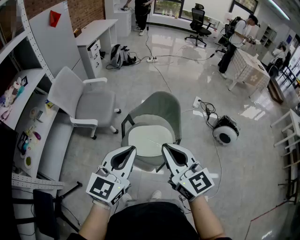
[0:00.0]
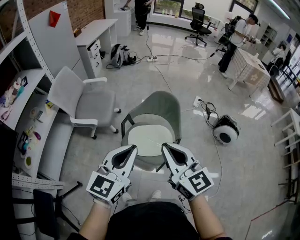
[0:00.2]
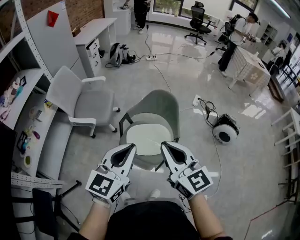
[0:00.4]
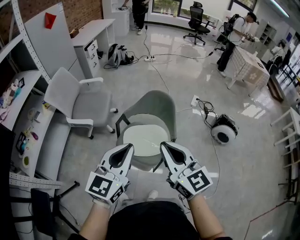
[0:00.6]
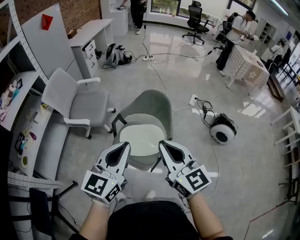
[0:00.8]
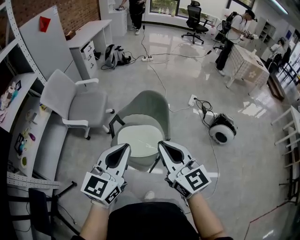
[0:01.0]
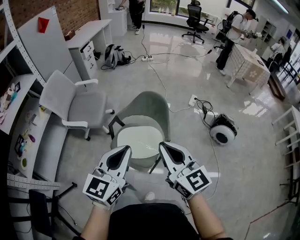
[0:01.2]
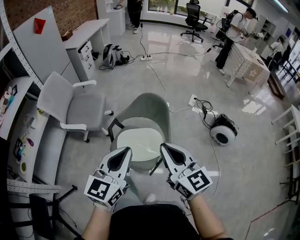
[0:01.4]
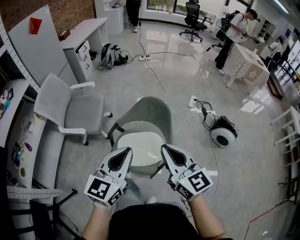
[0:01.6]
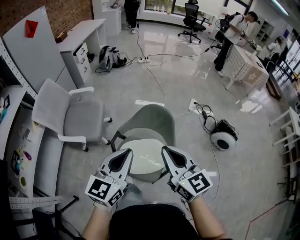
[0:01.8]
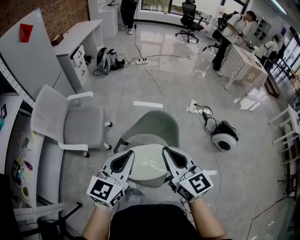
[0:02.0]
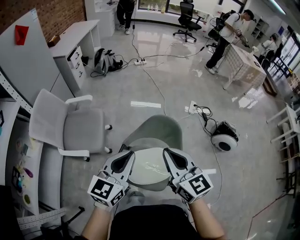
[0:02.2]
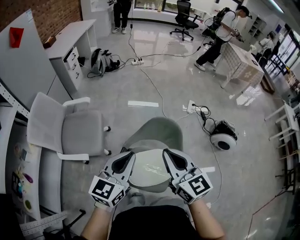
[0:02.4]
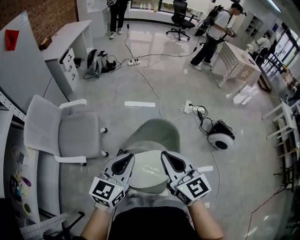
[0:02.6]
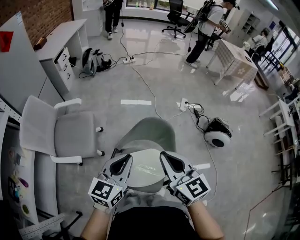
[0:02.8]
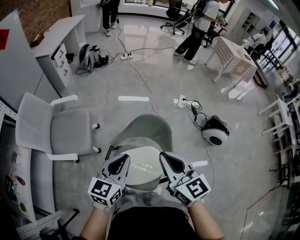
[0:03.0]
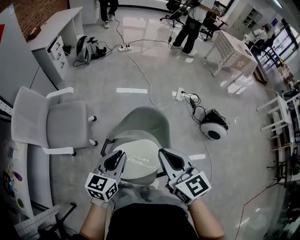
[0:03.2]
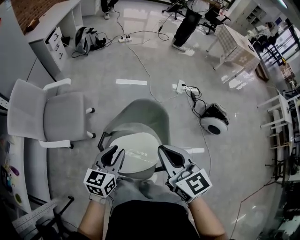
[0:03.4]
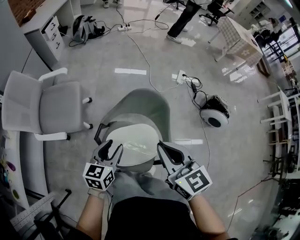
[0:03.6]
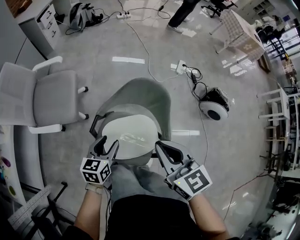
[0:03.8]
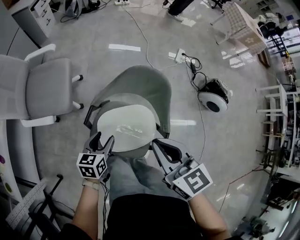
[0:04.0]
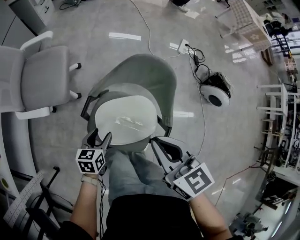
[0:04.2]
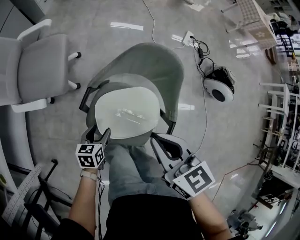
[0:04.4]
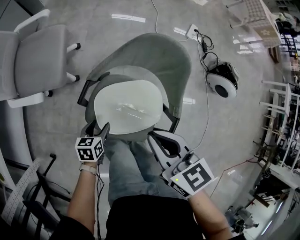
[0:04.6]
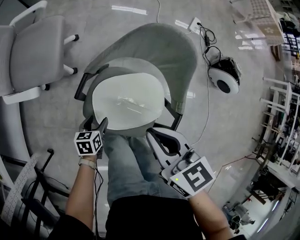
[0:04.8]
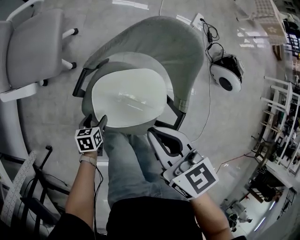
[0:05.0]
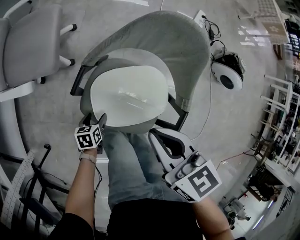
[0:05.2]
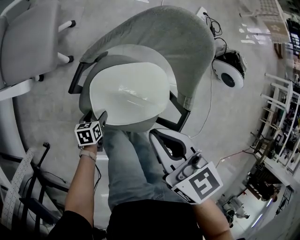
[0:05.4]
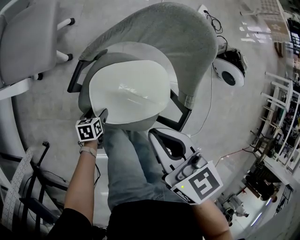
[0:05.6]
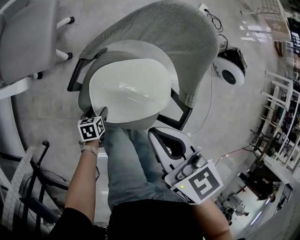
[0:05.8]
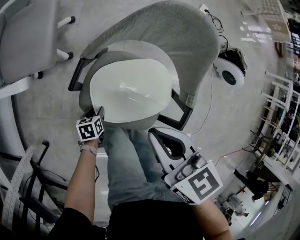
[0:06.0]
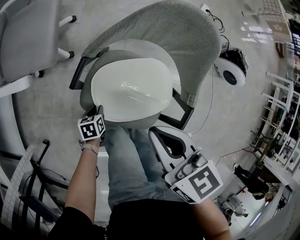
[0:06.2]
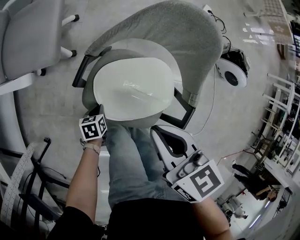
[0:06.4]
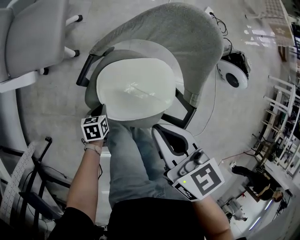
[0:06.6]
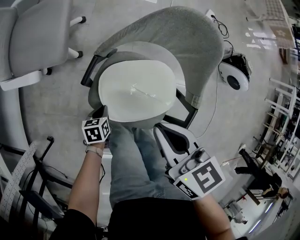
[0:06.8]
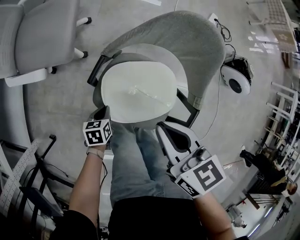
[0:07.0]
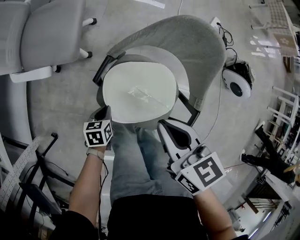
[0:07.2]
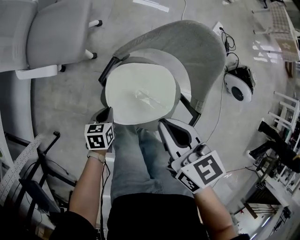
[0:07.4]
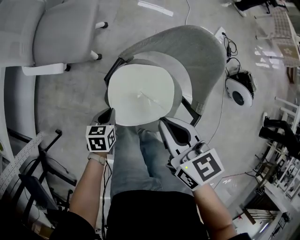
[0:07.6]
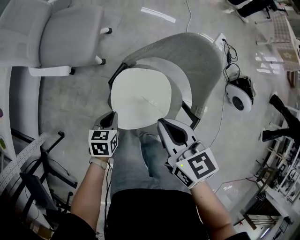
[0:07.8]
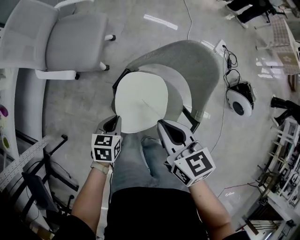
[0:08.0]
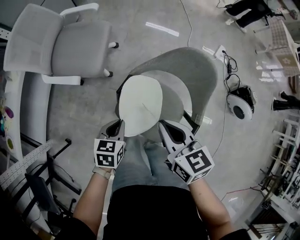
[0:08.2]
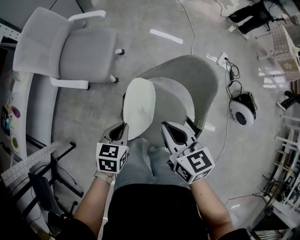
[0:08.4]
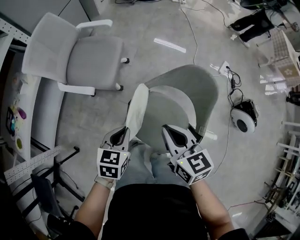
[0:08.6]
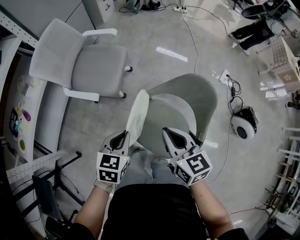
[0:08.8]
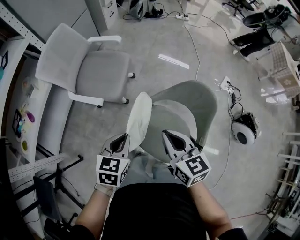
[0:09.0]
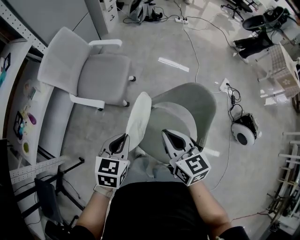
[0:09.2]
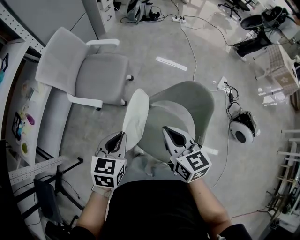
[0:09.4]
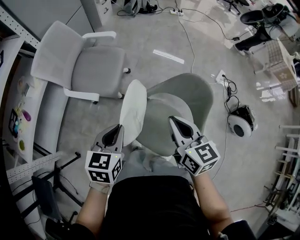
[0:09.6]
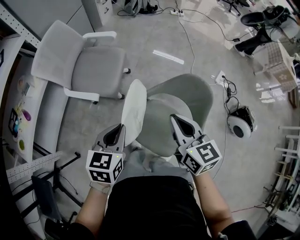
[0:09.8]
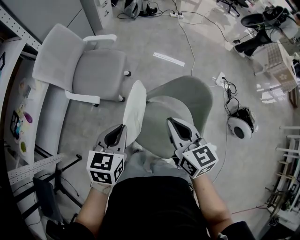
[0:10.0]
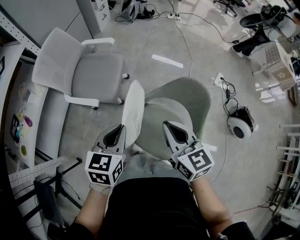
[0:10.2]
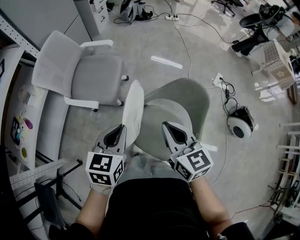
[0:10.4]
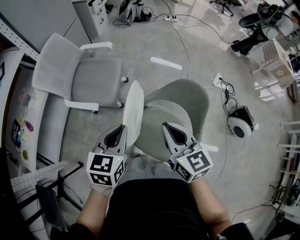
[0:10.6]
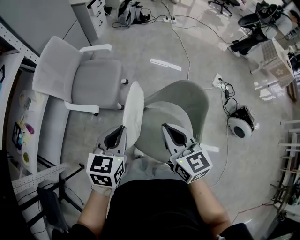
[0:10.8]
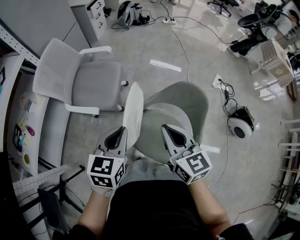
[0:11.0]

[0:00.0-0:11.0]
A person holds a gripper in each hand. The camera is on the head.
0:00.0 to 0:01.6: Both grippers travel together forward and to the right, about 10 cm.
0:01.6 to 0:03.2: The right gripper shifts about 15 cm forward. Meanwhile the left gripper travels forward and downward by approximately 20 cm.
0:03.2 to 0:04.8: The right gripper is displaced downward by approximately 20 cm, and changes its angle by approximately 30 degrees. The left gripper heads downward, covering approximately 40 cm, points its fingers roughly 40 degrees further downward, and opens its fingers.
0:04.8 to 0:06.2: The left gripper heads downward, covering about 10 cm, and closes up.
0:06.2 to 0:07.8: The right gripper changes place by approximately 5 cm; the left gripper is displaced upward by approximately 20 cm.
0:07.8 to 0:09.4: The left gripper is displaced upward by some 25 cm, and swivels roughly 20 degrees. Meanwhile the right gripper moves upward, roughly 10 cm.
0:09.4 to 0:11.0: The left gripper ends up roughly 5 cm from where it was.

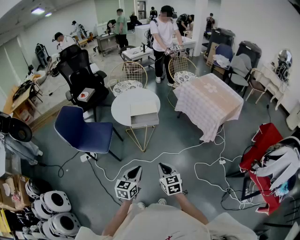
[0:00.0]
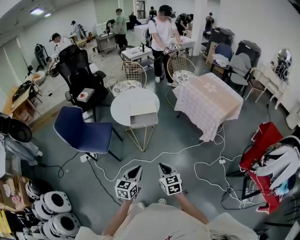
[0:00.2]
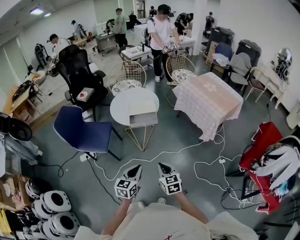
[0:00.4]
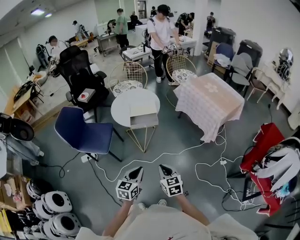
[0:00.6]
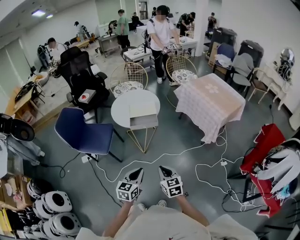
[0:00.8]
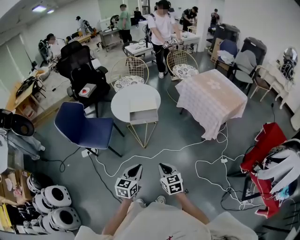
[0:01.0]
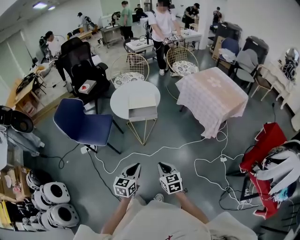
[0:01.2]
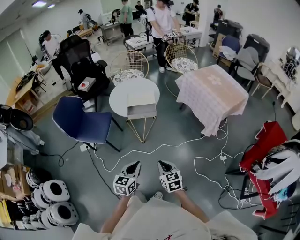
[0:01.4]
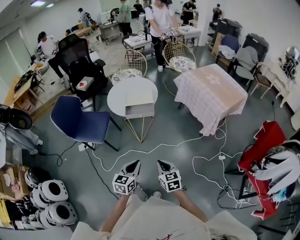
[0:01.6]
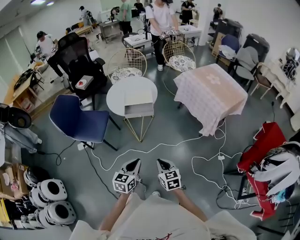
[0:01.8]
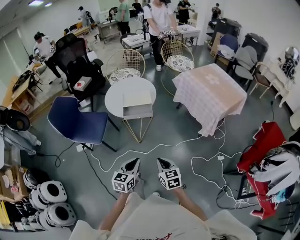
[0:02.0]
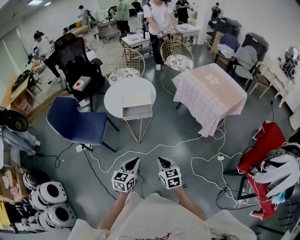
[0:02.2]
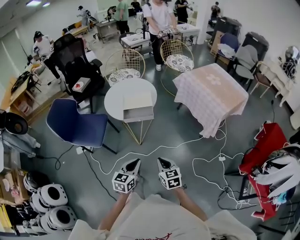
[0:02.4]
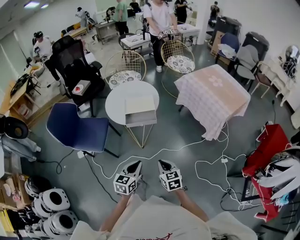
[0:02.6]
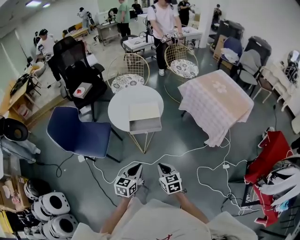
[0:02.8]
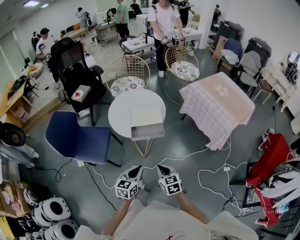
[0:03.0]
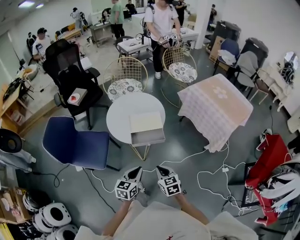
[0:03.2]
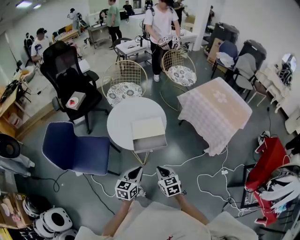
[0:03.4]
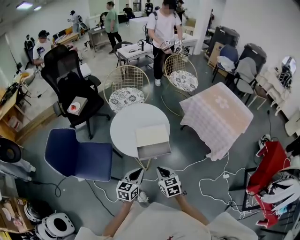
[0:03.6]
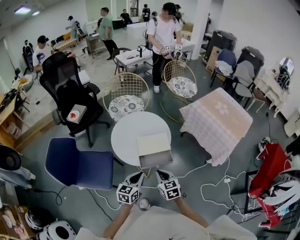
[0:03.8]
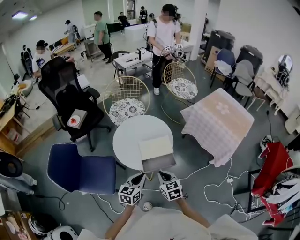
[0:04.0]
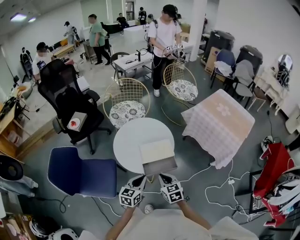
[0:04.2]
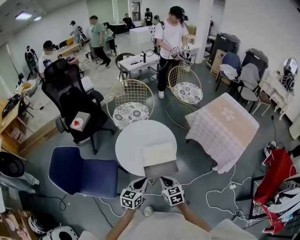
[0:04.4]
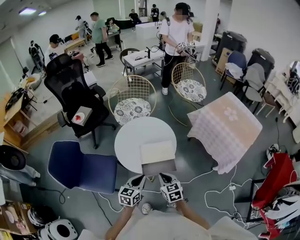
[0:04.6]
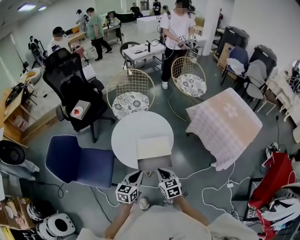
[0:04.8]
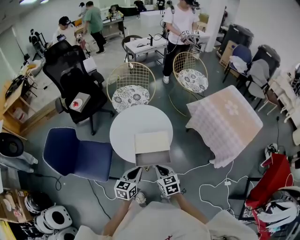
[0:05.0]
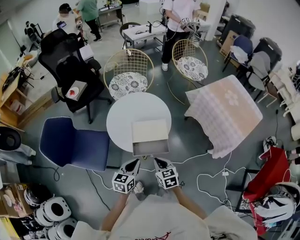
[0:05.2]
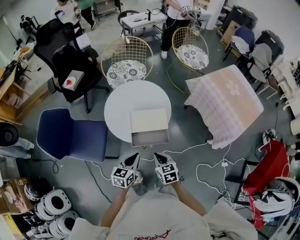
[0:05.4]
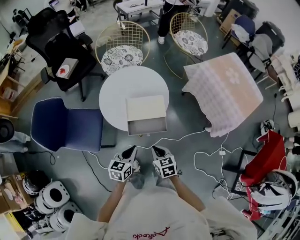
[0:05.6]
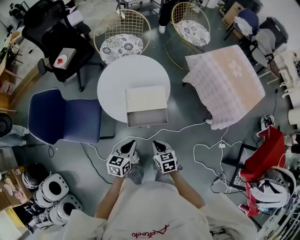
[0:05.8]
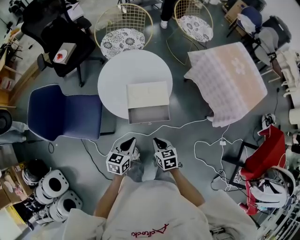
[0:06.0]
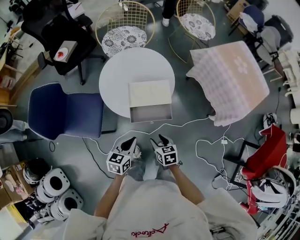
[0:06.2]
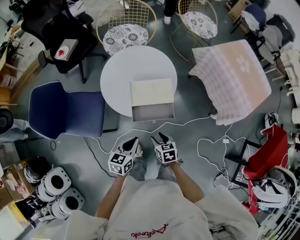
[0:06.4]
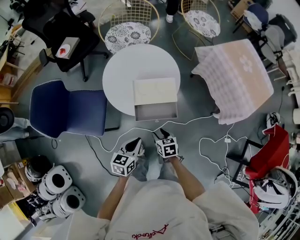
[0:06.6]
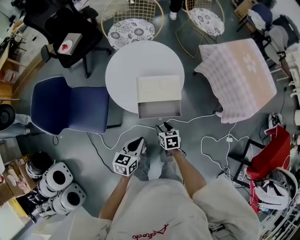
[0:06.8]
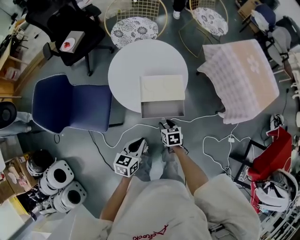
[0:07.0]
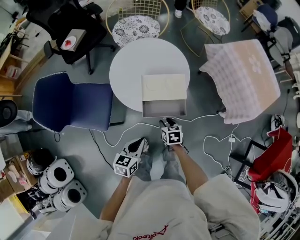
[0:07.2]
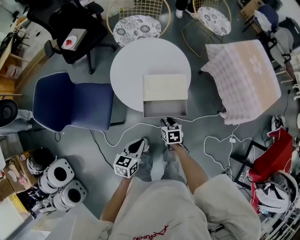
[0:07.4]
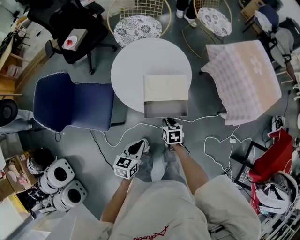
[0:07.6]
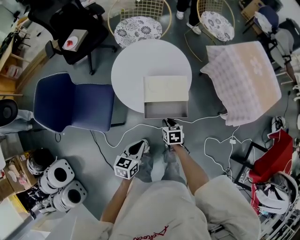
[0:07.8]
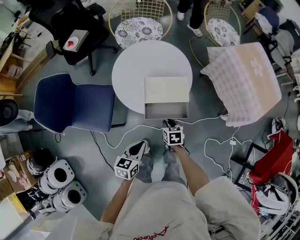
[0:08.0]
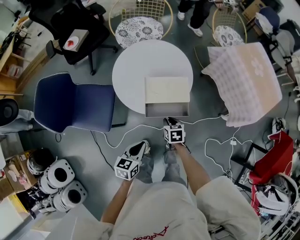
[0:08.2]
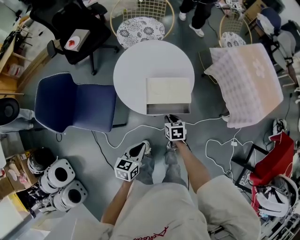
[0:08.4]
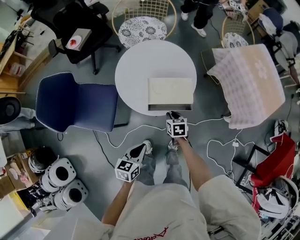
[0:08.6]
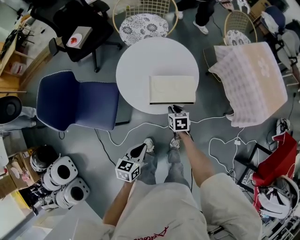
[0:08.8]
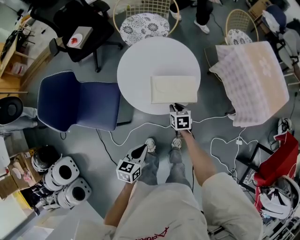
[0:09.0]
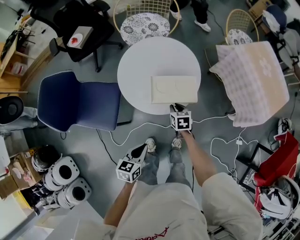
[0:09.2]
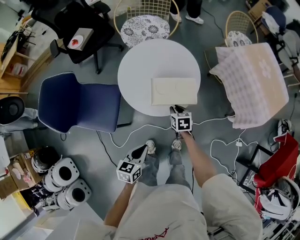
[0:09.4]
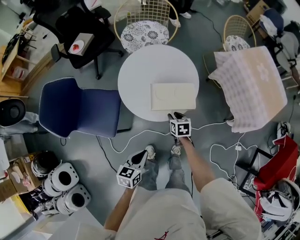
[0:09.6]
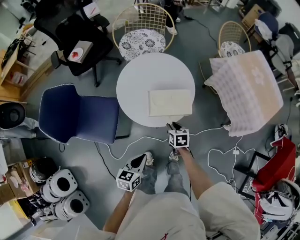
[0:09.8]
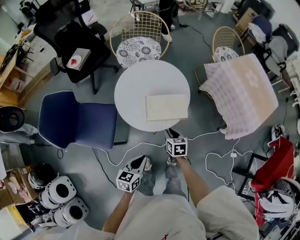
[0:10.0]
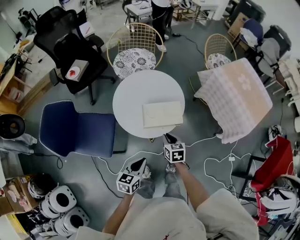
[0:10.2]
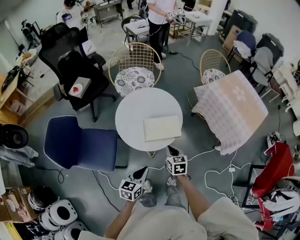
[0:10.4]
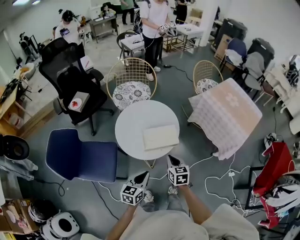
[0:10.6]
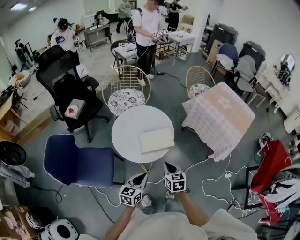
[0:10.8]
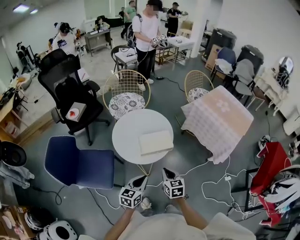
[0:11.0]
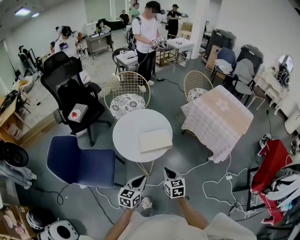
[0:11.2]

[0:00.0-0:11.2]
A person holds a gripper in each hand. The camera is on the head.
0:00.0 to 0:01.6: The left gripper is displaced to the right by some 5 cm; the right gripper changes place by some 5 cm.
0:01.6 to 0:03.2: The left gripper is displaced forward by roughly 20 cm; the right gripper shifts about 20 cm forward and to the left.
0:03.2 to 0:04.8: Both grippers move forward, approximately 15 cm.
0:04.8 to 0:06.4: The right gripper is displaced downward and backward by some 15 cm, rotates approximately 20 degrees, and opens its fingers, while the left gripper heads downward and backward, covering roughly 10 cm.
0:06.4 to 0:08.0: The right gripper is displaced forward by roughly 5 cm, and closes its fingers.
0:08.0 to 0:09.6: The right gripper shifts some 10 cm forward.
0:09.6 to 0:11.2: The left gripper travels upward by about 10 cm, and turns by roughly 20 degrees; the right gripper shifts about 25 cm upward and backward, turns by about 30 degrees, and closes up.

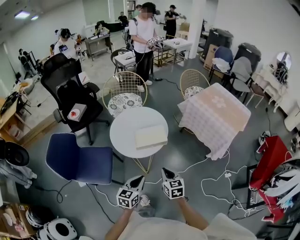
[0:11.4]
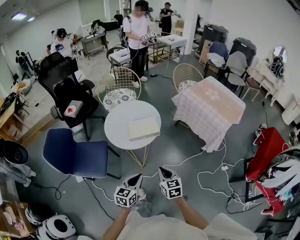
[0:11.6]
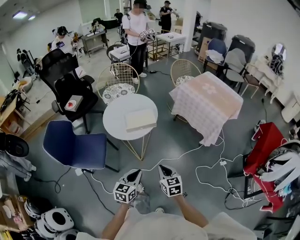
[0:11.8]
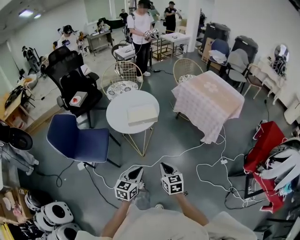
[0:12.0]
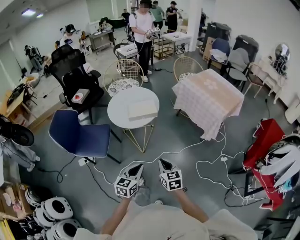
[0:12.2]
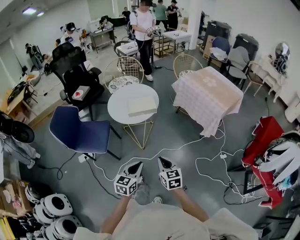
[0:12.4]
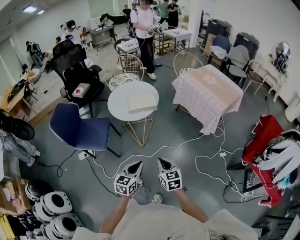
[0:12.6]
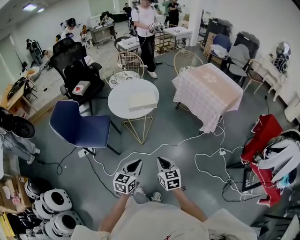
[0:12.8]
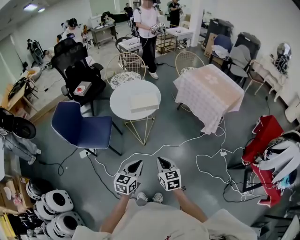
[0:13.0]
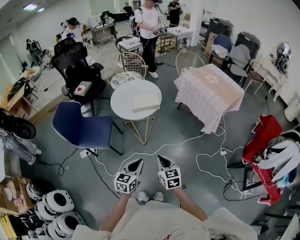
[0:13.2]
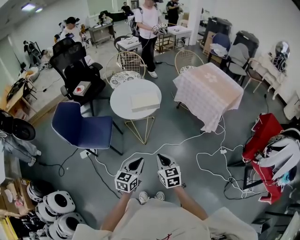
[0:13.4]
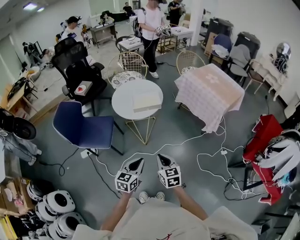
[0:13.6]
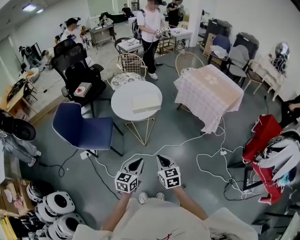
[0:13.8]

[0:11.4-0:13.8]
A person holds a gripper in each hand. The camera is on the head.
0:11.4 to 0:12.6: The right gripper shifts about 25 cm backward. Meanwhile the left gripper goes some 25 cm backward and to the right.
0:12.6 to 0:13.8: The right gripper moves approximately 5 cm.
